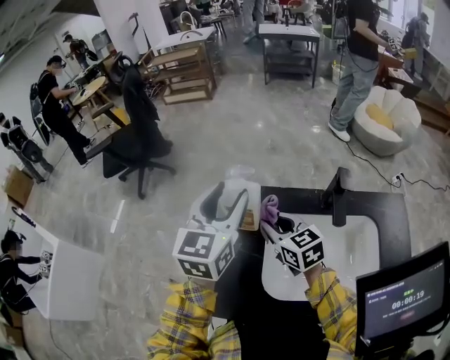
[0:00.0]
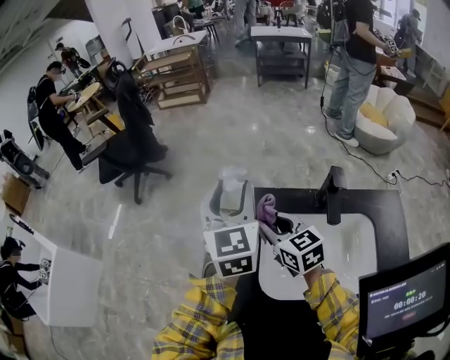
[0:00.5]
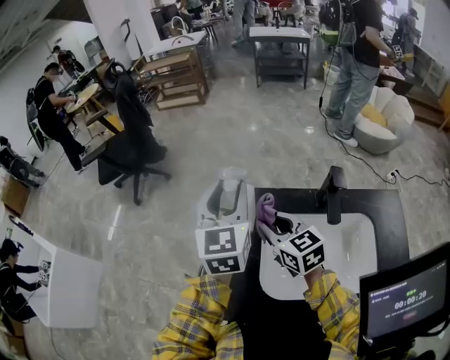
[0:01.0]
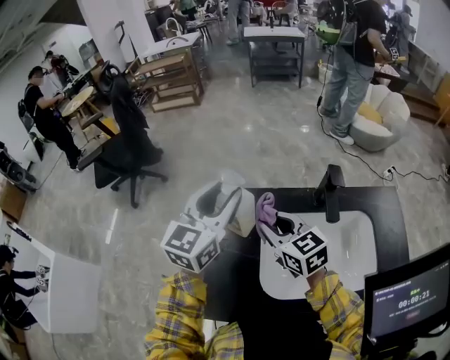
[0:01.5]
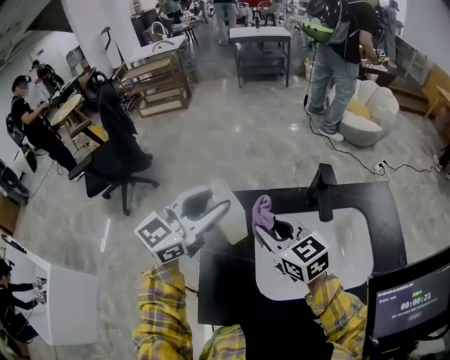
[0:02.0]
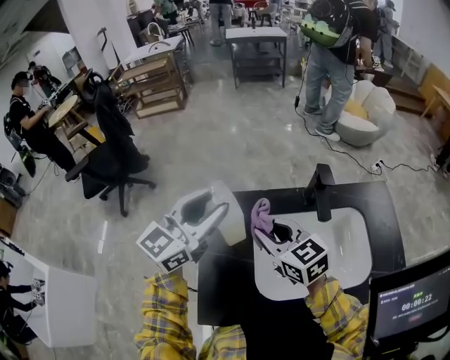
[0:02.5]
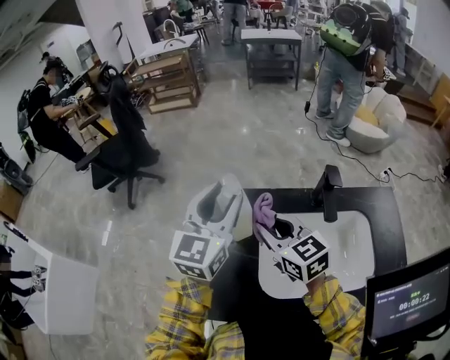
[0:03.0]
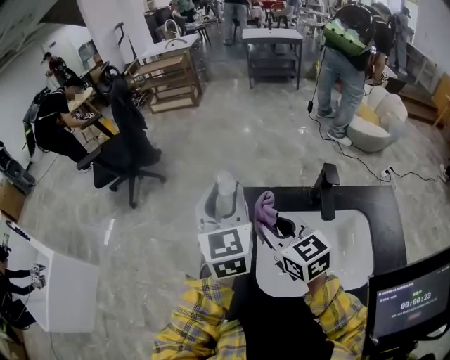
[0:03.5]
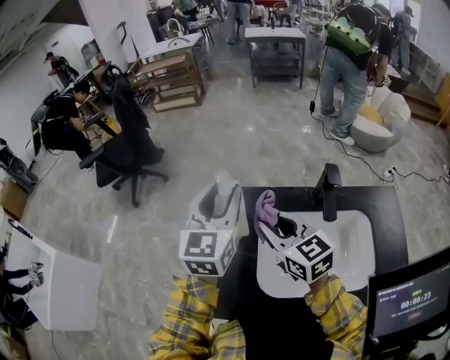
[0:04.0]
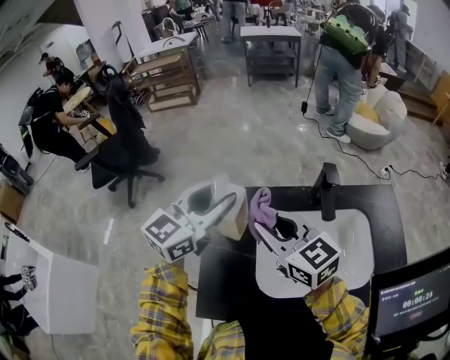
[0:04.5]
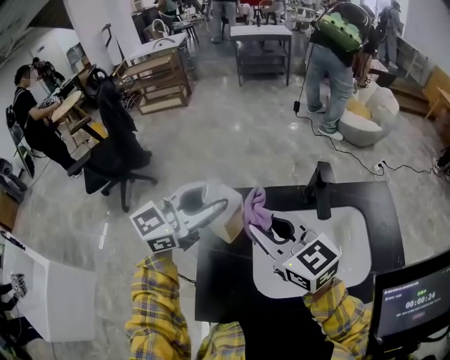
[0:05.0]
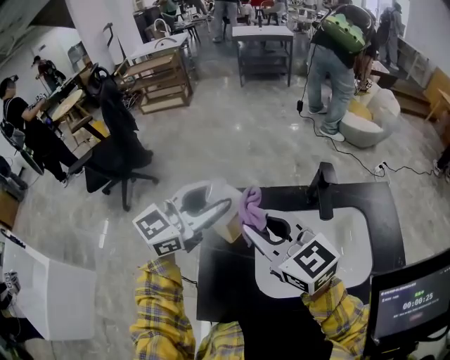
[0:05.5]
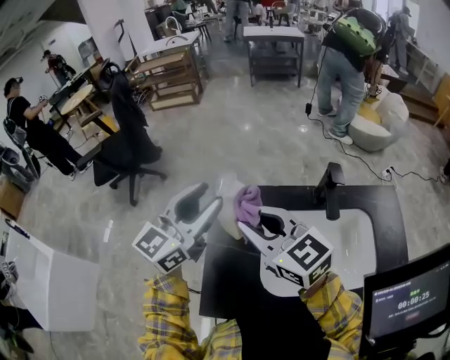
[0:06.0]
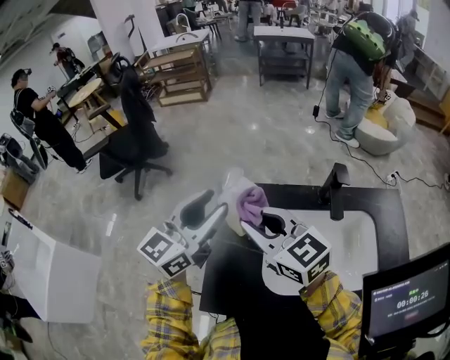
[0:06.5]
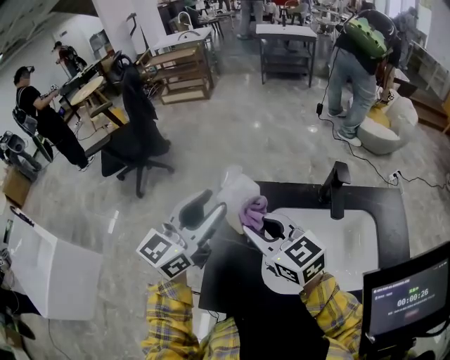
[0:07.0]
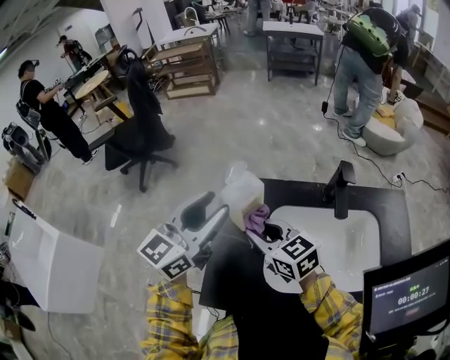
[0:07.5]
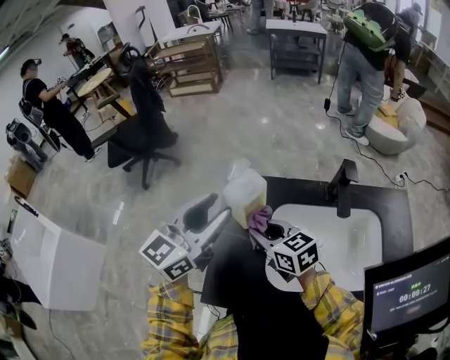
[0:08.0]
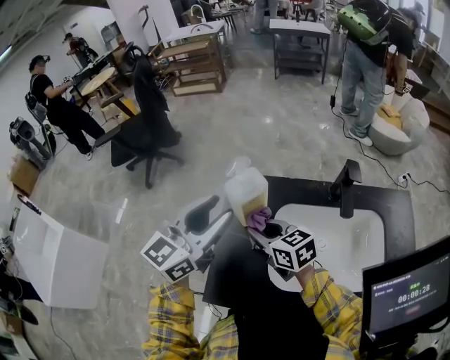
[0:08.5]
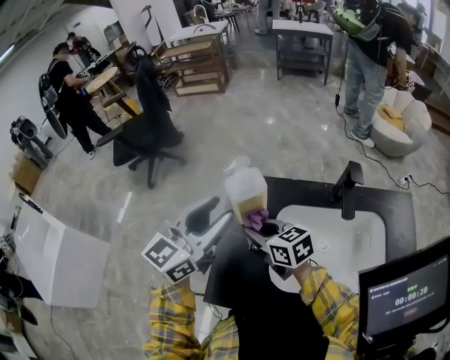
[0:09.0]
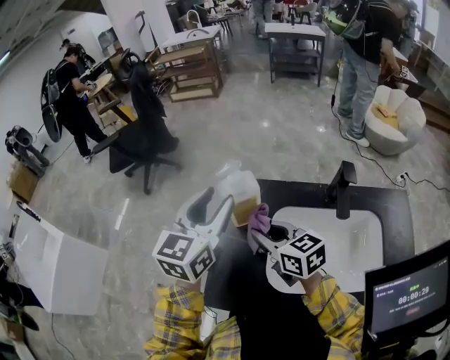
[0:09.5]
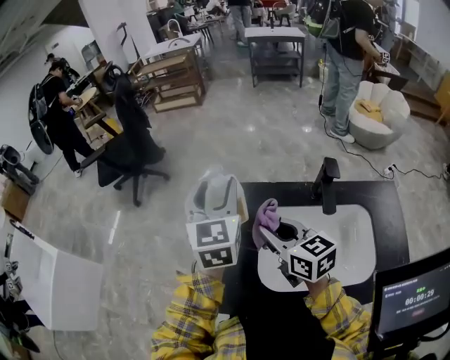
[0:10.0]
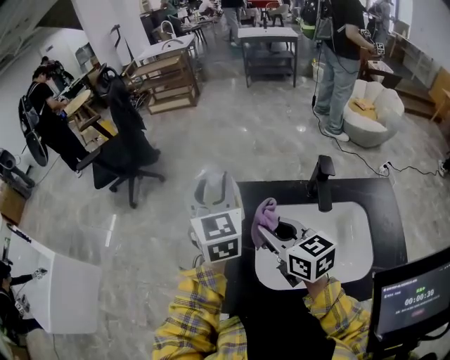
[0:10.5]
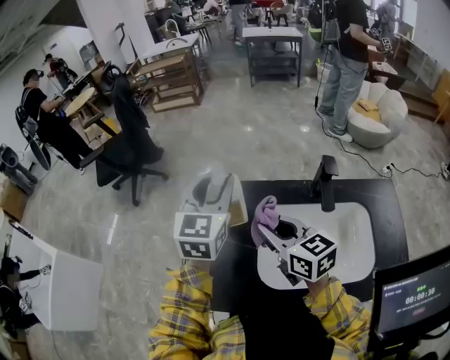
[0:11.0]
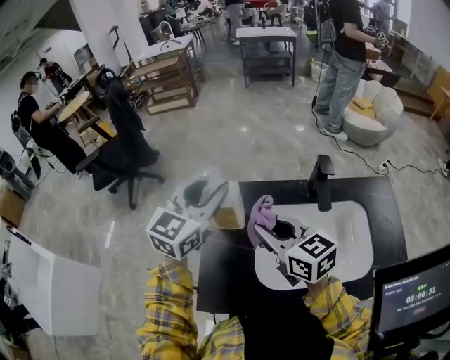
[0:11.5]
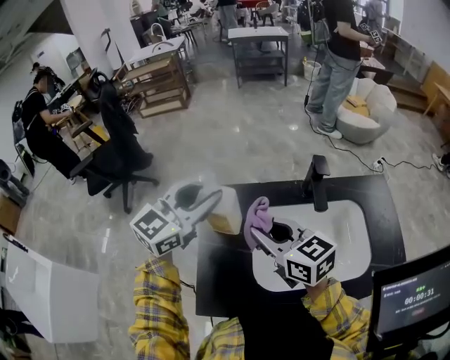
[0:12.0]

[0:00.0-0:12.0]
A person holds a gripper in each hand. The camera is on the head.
0:00.0 to 0:02.0: The left gripper changes its angle by approximately 40 degrees. Meanwhile the right gripper shifts by approximately 5 cm.
0:02.0 to 0:04.0: The left gripper rotates roughly 40 degrees.
0:04.0 to 0:06.0: The left gripper swivels about 30 degrees. Meanwhile the right gripper heads upward, covering roughly 5 cm.
0:06.0 to 0:08.0: The right gripper moves downward, about 15 cm, and turns by roughly 20 degrees. The left gripper goes approximately 5 cm backward.
0:08.0 to 0:10.0: The left gripper is displaced forward and to the right by about 10 cm, and turns by about 40 degrees. Meanwhile the right gripper travels upward and to the right by roughly 10 cm.
0:10.0 to 0:12.0: The left gripper swivels approximately 50 degrees.

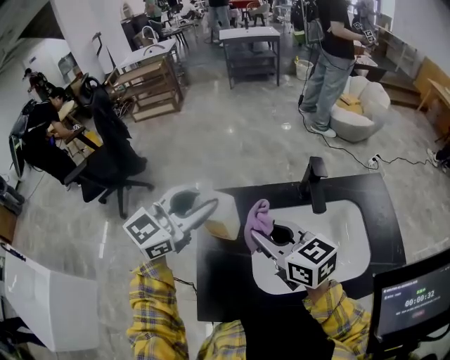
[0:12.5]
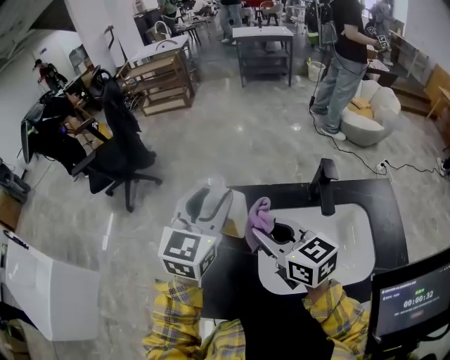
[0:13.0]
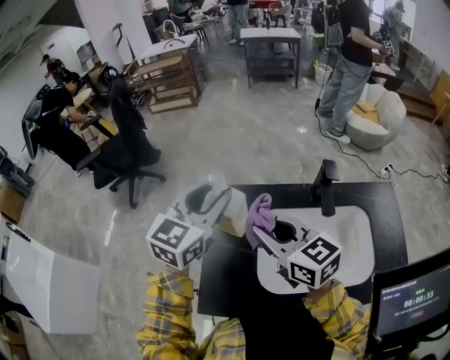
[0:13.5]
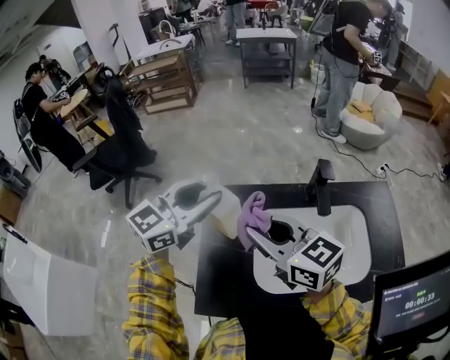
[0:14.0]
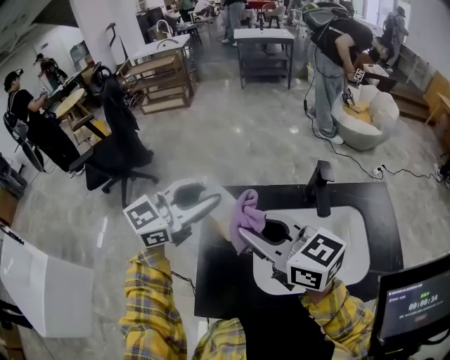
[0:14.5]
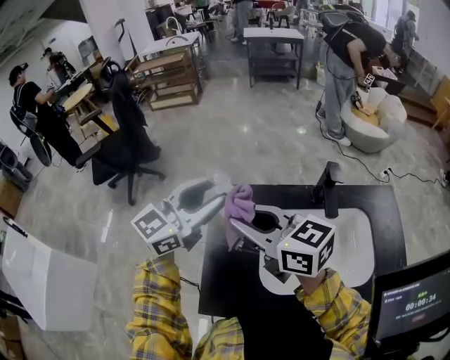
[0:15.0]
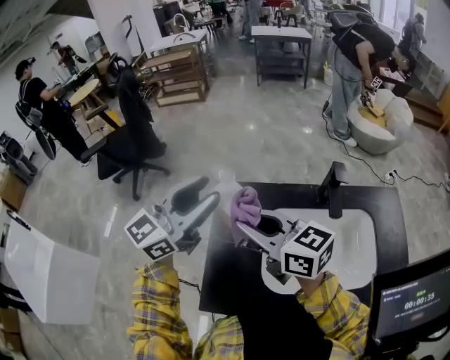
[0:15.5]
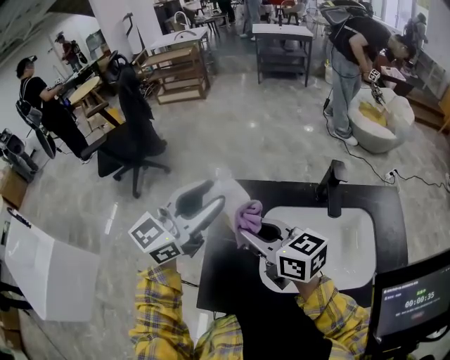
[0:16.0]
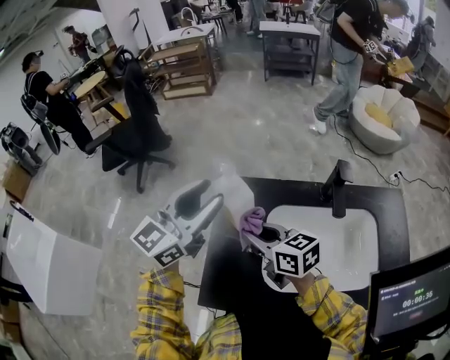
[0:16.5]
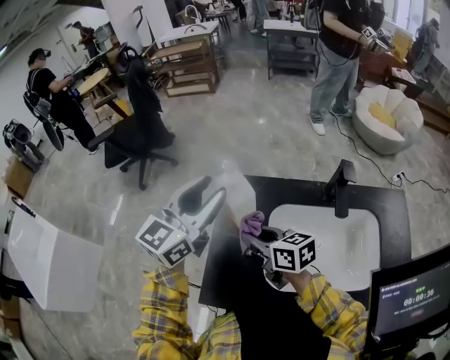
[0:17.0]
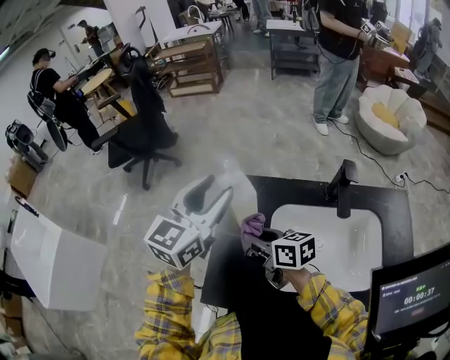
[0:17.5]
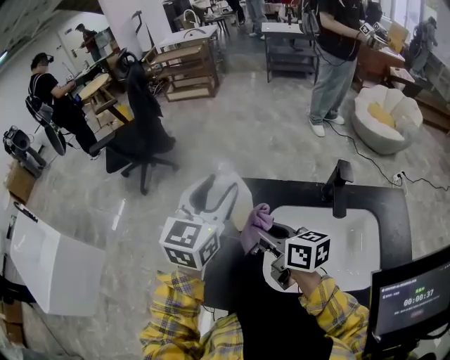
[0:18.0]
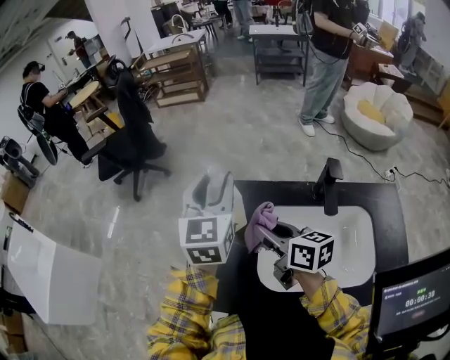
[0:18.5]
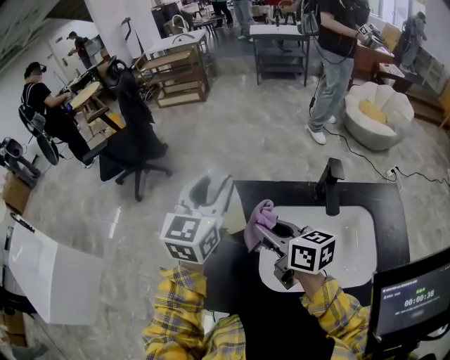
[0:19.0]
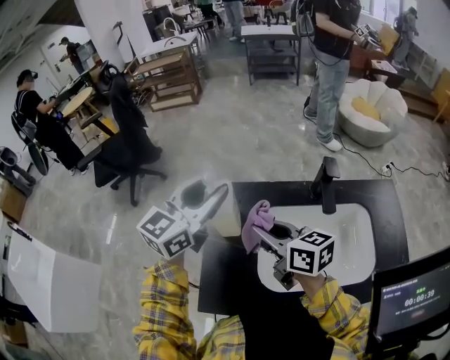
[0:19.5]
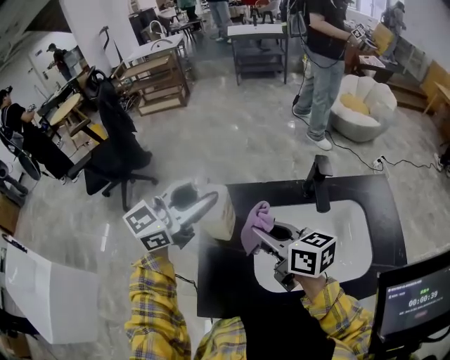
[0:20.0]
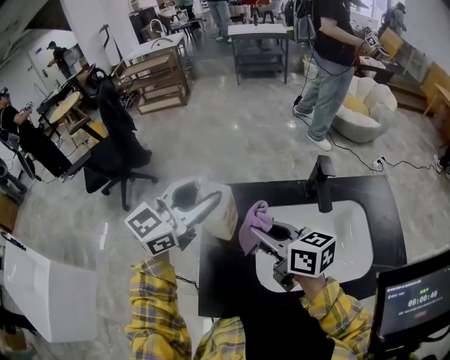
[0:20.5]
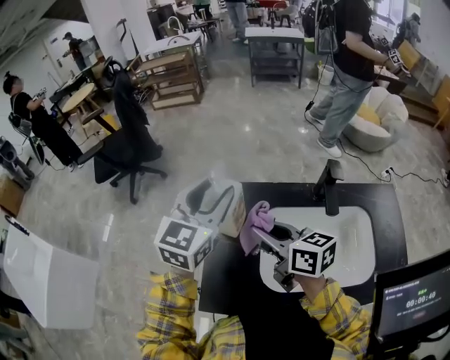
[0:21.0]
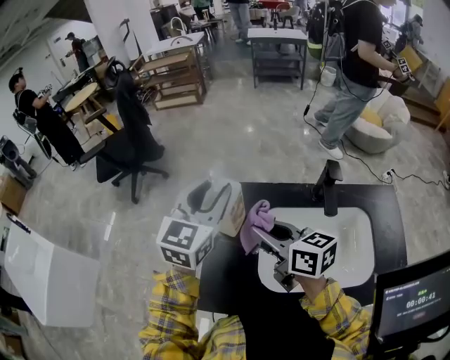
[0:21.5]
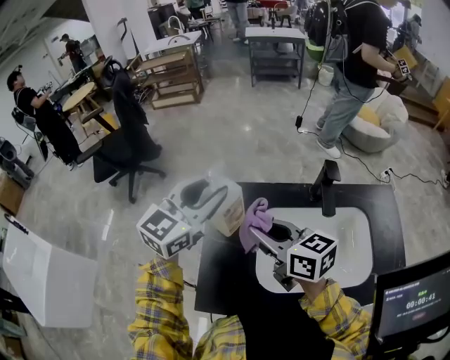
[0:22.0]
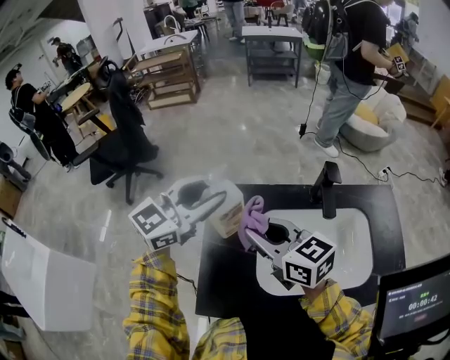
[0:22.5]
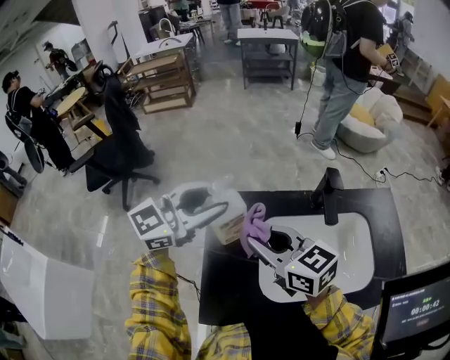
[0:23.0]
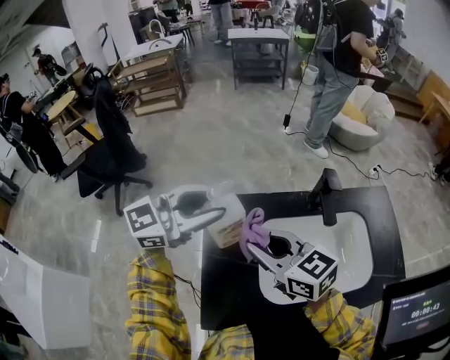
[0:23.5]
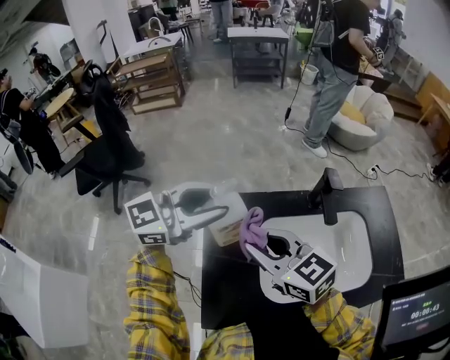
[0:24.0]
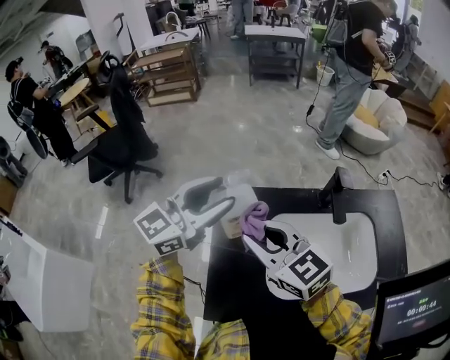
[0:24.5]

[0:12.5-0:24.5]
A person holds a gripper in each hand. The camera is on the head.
0:12.5 to 0:14.5: The right gripper heads upward, covering roughly 5 cm.
0:14.5 to 0:16.5: The right gripper heads downward, covering some 15 cm. Meanwhile the left gripper turns by some 20 degrees.
0:16.5 to 0:18.5: The left gripper moves forward, some 5 cm, and turns by approximately 40 degrees. Meanwhile the right gripper shifts about 5 cm to the right.
0:18.5 to 0:20.5: The left gripper rotates roughly 50 degrees.

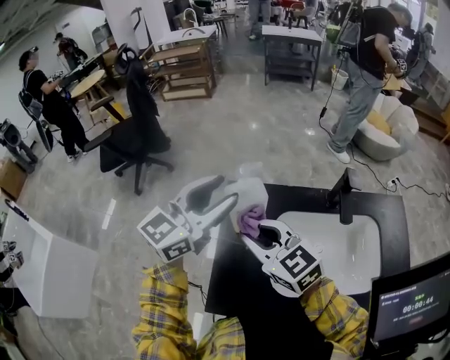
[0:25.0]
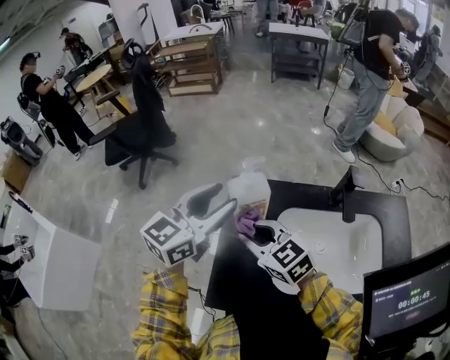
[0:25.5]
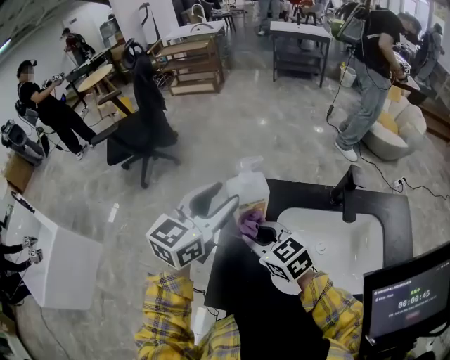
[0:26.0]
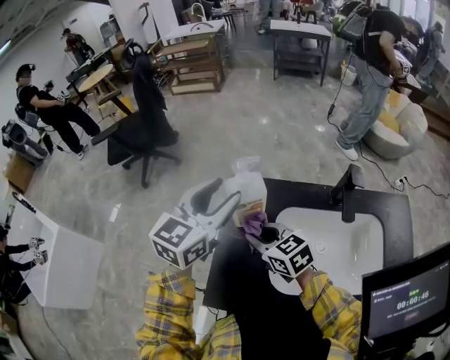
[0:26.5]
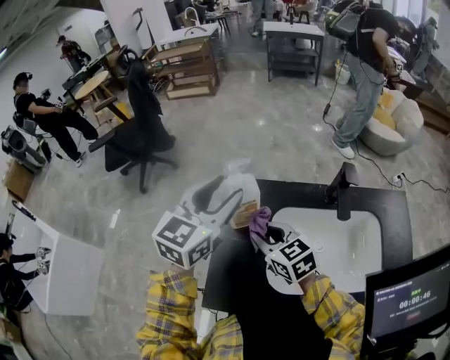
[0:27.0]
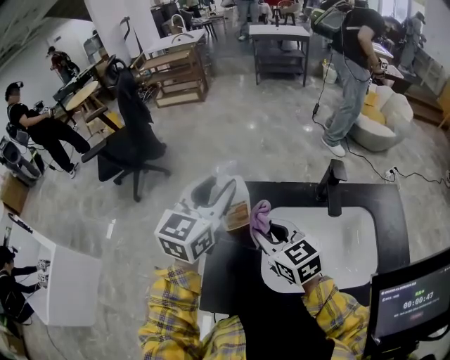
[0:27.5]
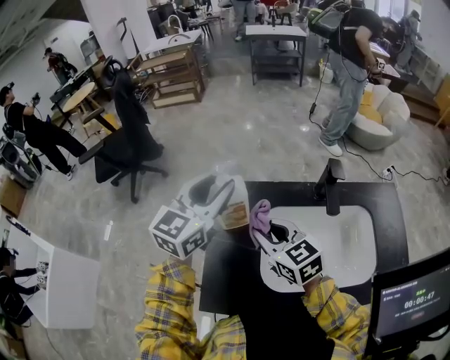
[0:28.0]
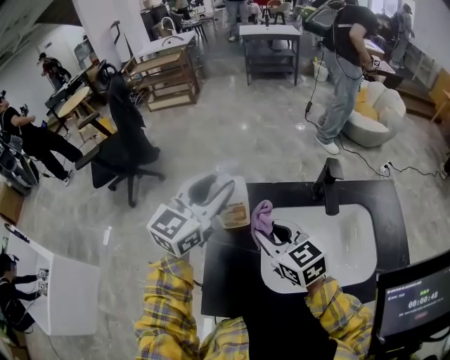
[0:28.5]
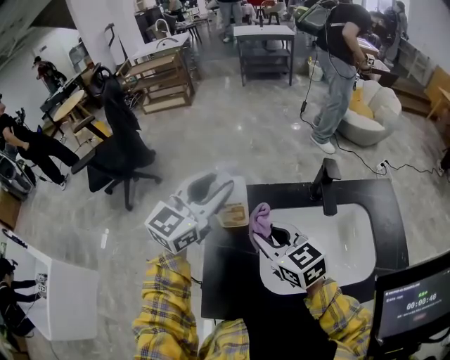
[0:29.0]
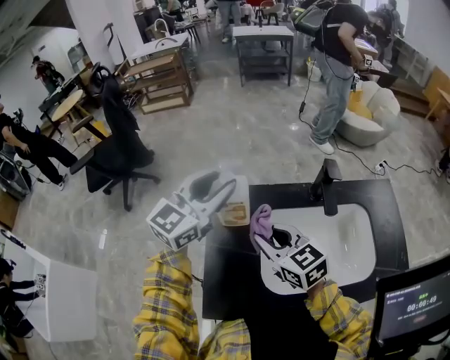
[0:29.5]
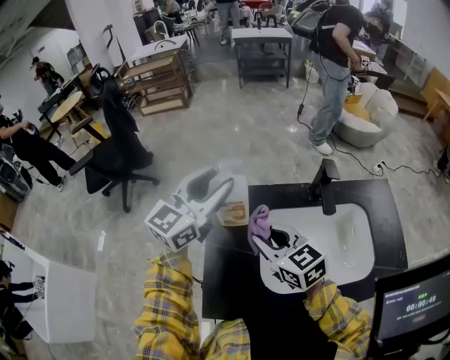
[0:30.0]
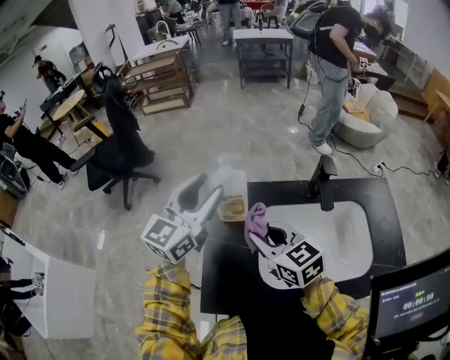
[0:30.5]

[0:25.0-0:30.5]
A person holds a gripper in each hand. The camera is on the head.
0:25.0 to 0:27.0: The right gripper moves downward, about 10 cm.
0:27.0 to 0:28.5: The right gripper changes place by about 5 cm.
0:28.5 to 0:30.5: The grippers move only a little.
